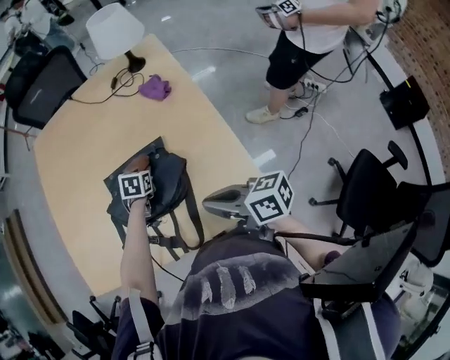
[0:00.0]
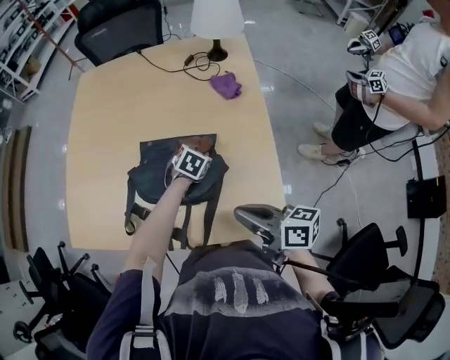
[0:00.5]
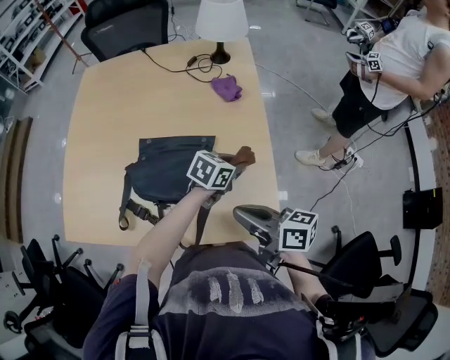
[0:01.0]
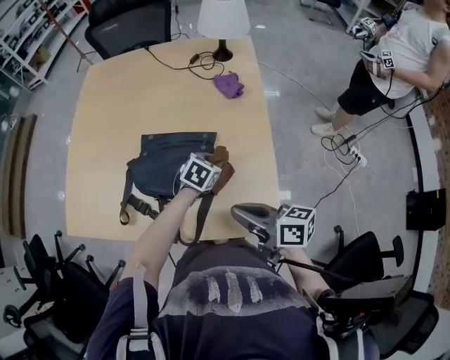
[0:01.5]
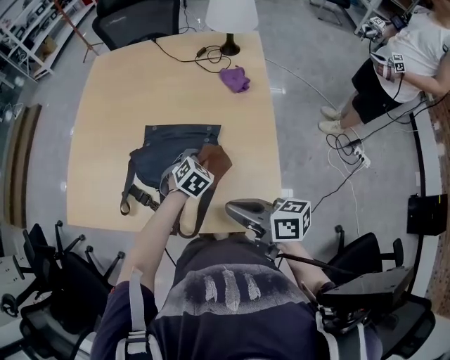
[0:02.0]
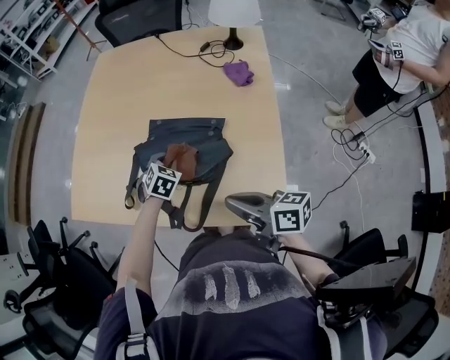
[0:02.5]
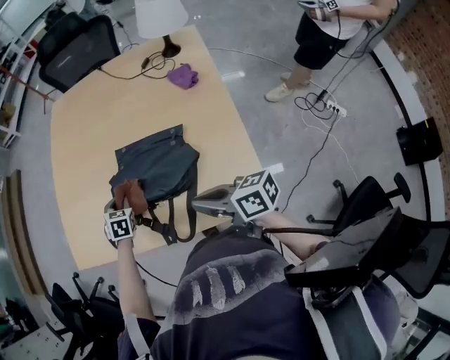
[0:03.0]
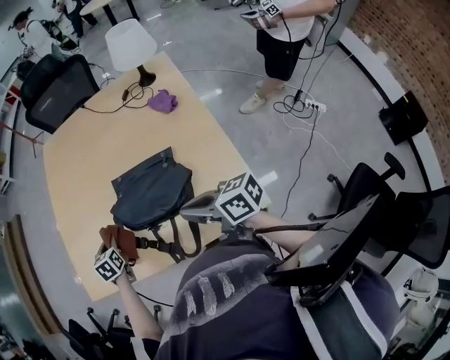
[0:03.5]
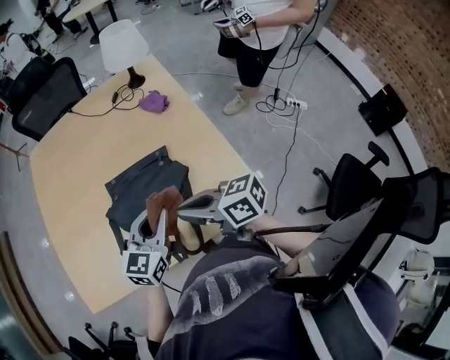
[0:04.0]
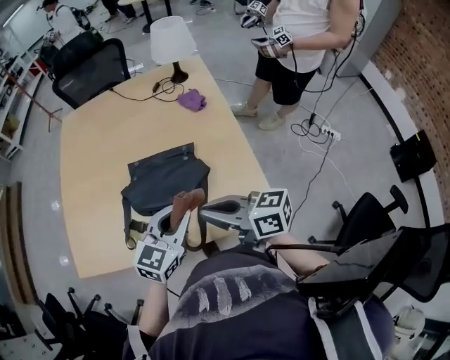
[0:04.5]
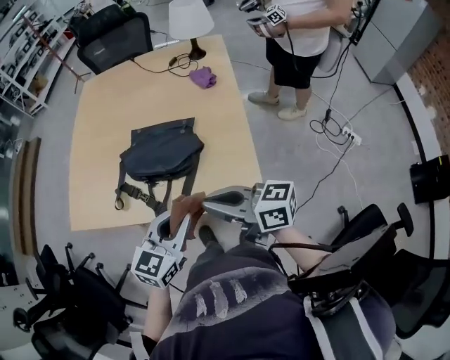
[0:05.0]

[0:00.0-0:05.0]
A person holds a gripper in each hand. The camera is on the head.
0:00.0 to 0:02.5: The left gripper reaches some 10 cm upward, then returns.
0:02.5 to 0:05.0: The right gripper moves some 10 cm. Meanwhile the left gripper shifts by some 35 cm, and tips its fingers upward by approximately 30 degrees.

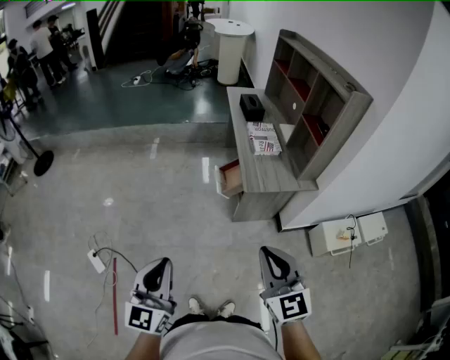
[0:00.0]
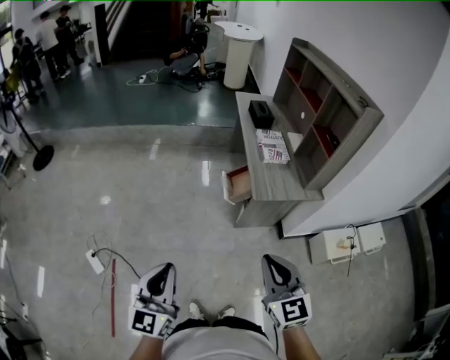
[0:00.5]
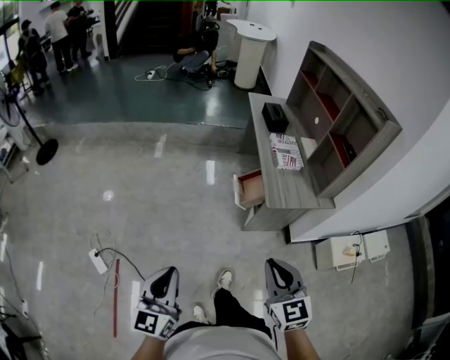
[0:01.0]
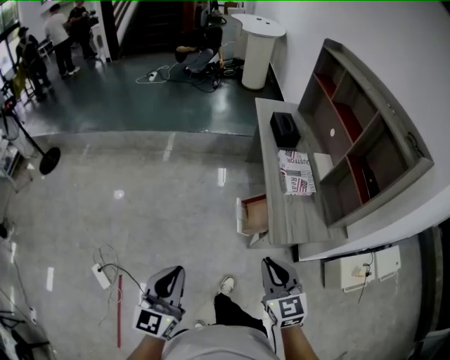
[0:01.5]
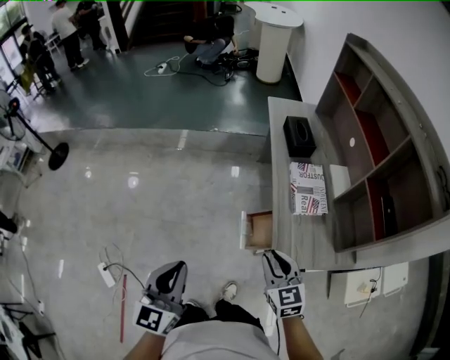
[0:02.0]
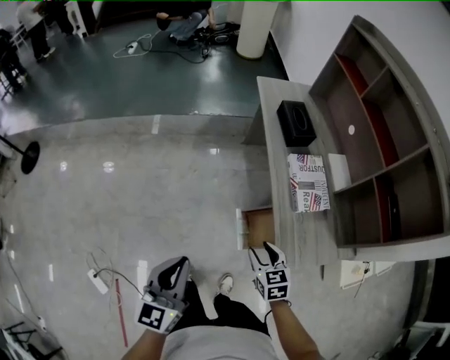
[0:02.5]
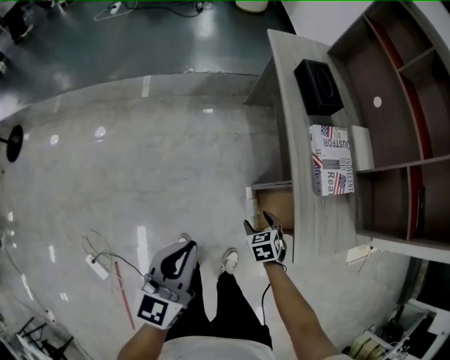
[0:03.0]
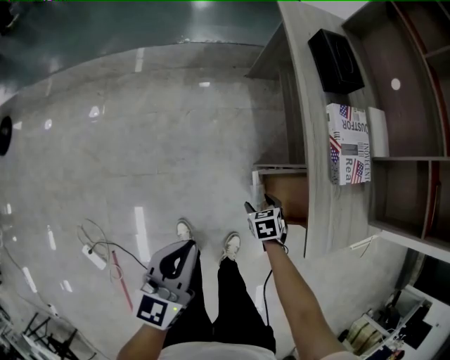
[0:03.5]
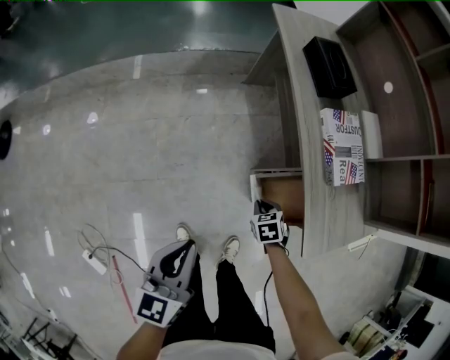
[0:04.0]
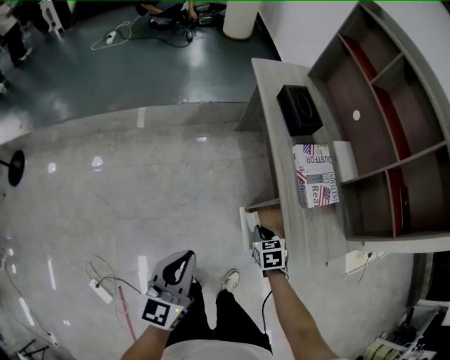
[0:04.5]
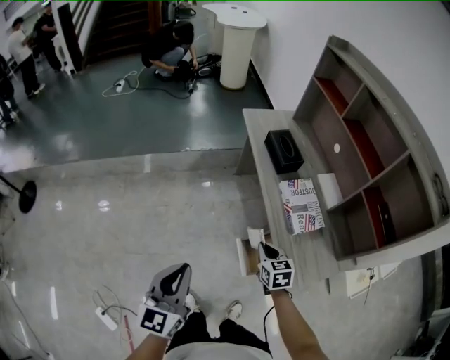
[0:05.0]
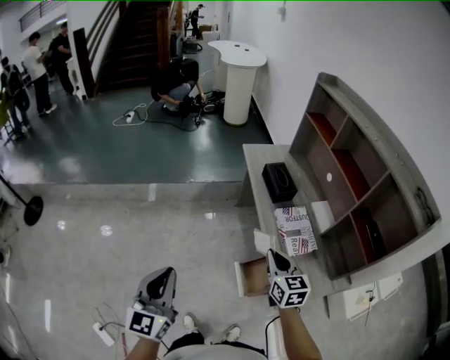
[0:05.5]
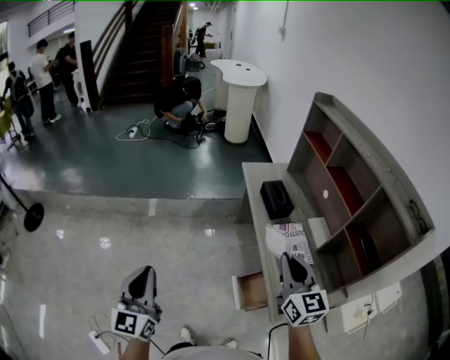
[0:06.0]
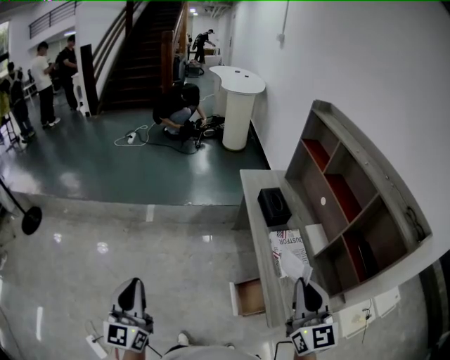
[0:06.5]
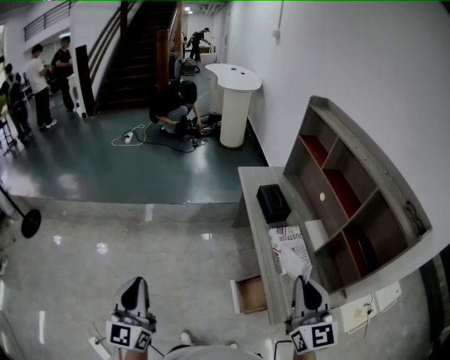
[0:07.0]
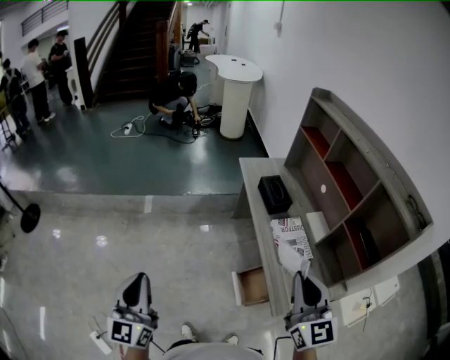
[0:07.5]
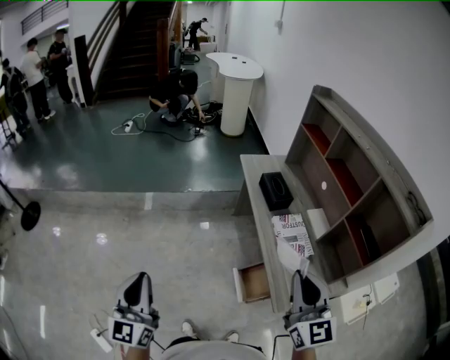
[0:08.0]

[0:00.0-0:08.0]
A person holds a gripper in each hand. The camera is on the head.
0:00.0 to 0:02.0: Both grippers travel together forward, some 40 cm.
0:02.0 to 0:04.0: The left gripper heads downward and forward, covering approximately 25 cm, and turns by roughly 20 degrees. The right gripper moves downward, about 40 cm, points its fingers some 40 degrees further downward, and opens and closes again.
0:04.0 to 0:06.0: The right gripper goes about 60 cm upward, and points its fingers about 70 degrees further upward. The left gripper goes some 30 cm upward, and changes its angle by approximately 30 degrees.
0:06.0 to 0:08.0: The right gripper goes about 10 cm backward.

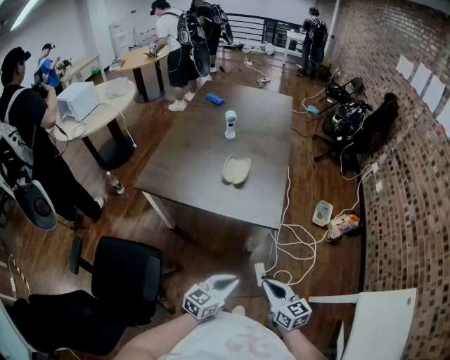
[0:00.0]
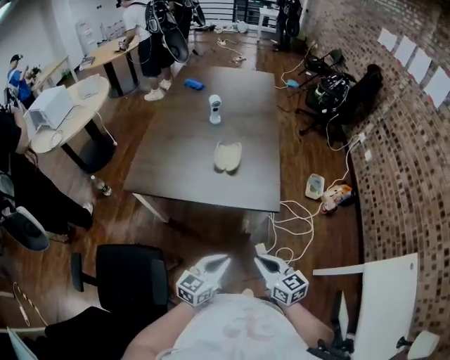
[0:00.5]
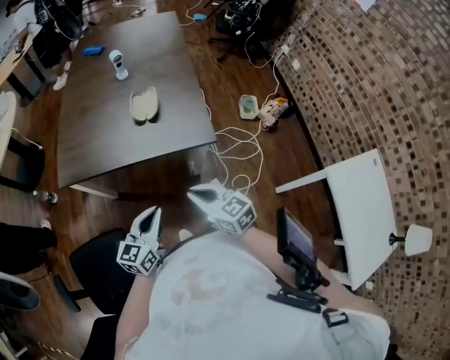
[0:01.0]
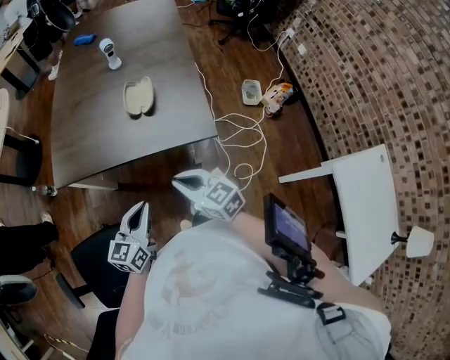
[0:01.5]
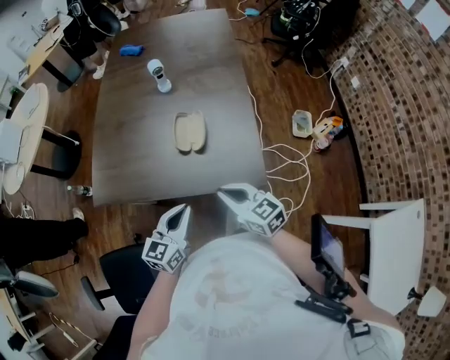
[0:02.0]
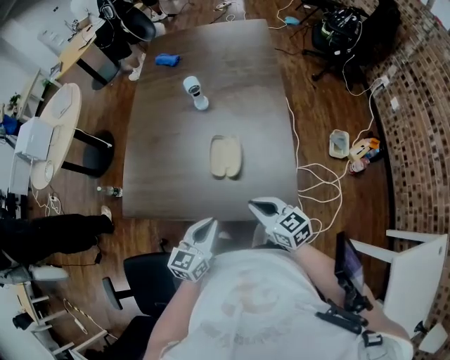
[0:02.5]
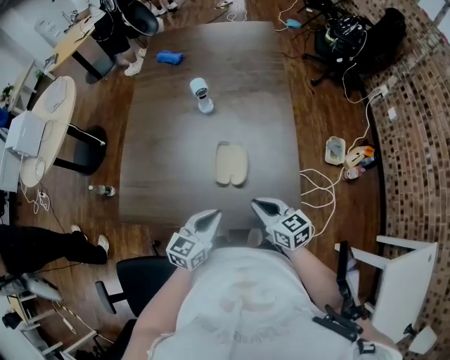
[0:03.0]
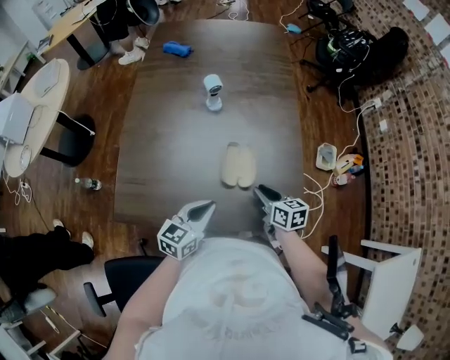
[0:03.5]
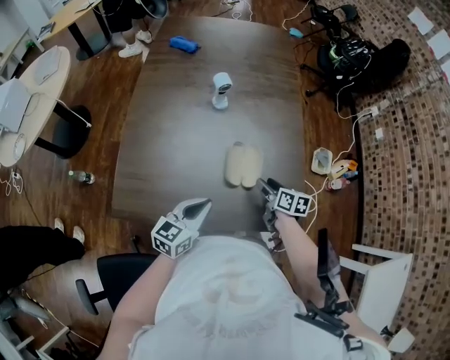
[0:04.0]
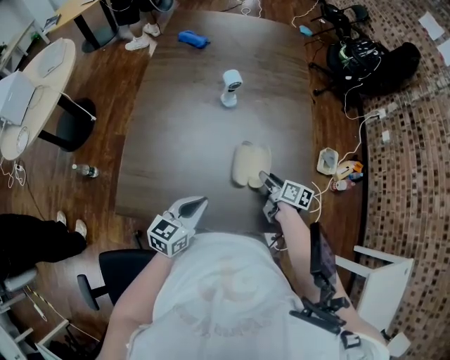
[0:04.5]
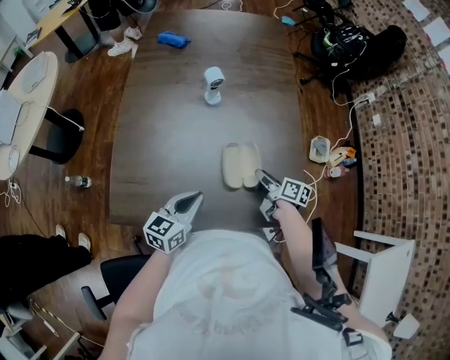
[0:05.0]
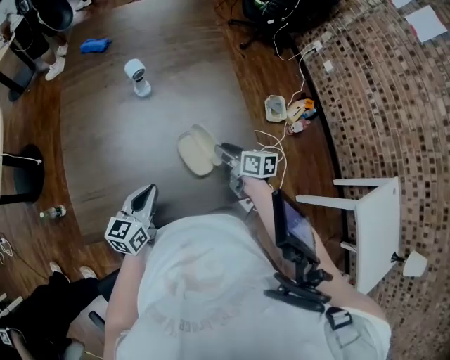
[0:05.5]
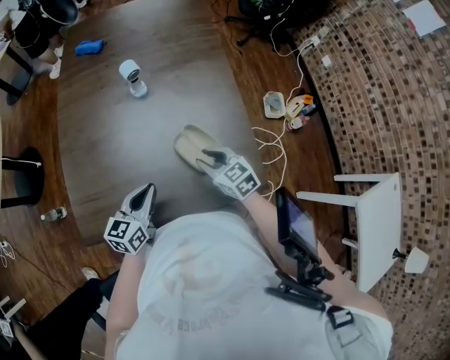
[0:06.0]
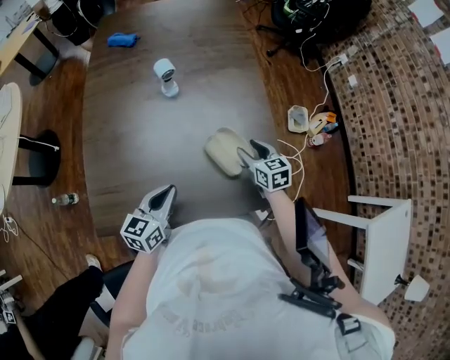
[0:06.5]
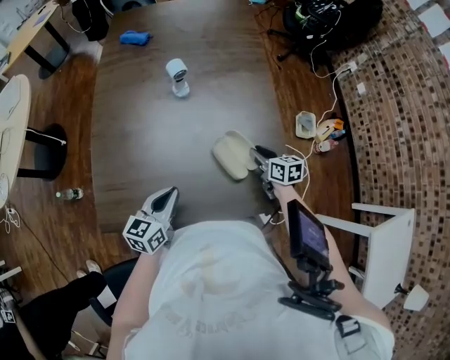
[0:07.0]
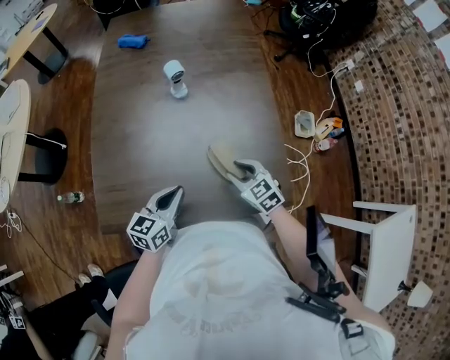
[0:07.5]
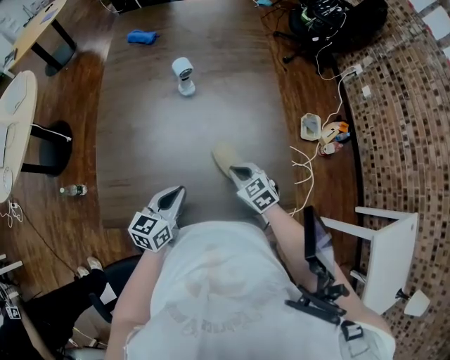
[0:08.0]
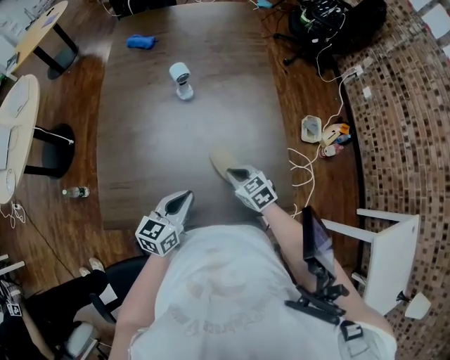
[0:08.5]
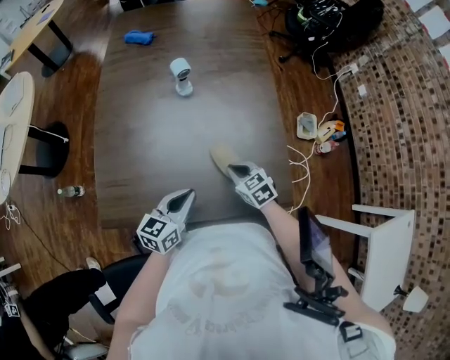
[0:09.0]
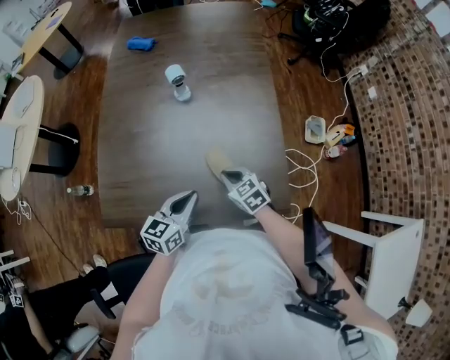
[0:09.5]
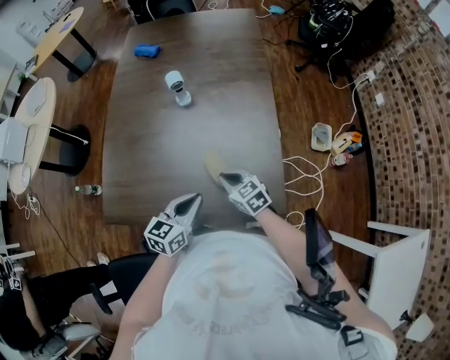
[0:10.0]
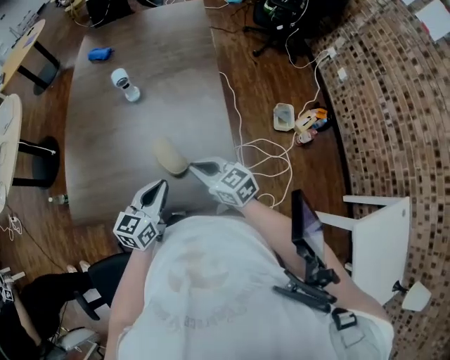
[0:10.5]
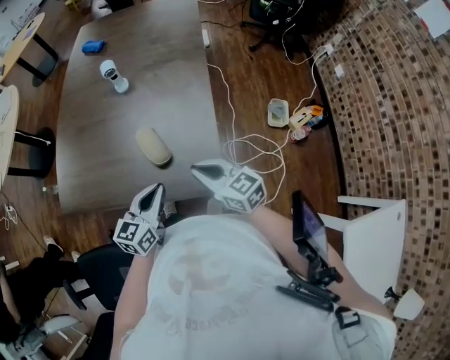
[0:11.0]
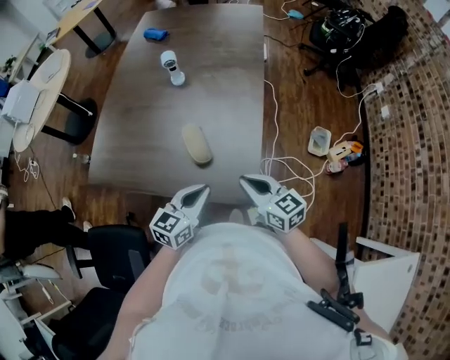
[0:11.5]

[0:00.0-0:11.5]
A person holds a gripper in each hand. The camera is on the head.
0:00.0 to 0:02.0: The right gripper shifts some 25 cm forward; the left gripper heads forward and to the left, covering approximately 25 cm.
0:02.0 to 0:04.0: The right gripper goes roughly 25 cm forward and downward, rotates roughly 40 degrees, and opens its fingers, while the left gripper goes approximately 20 cm forward and to the left.
0:04.0 to 0:06.0: The right gripper changes place by some 5 cm, turns by some 40 degrees, and closes up.
0:06.0 to 0:07.5: The right gripper reaches about 10 cm to the right, then returns.
0:07.5 to 0:09.5: The right gripper closes; the left gripper travels to the right by approximately 5 cm.
0:09.5 to 0:11.5: The right gripper travels to the right, backward and upward by some 25 cm, and swivels approximately 30 degrees. Meanwhile the left gripper goes about 20 cm to the right and backward.

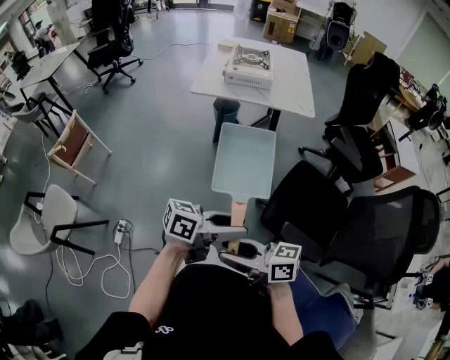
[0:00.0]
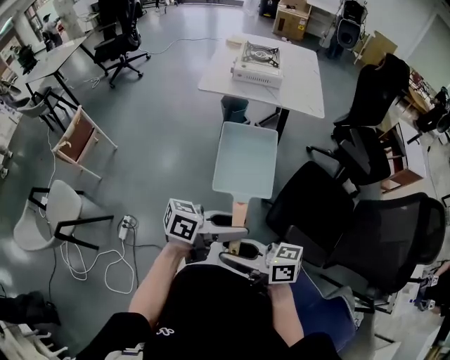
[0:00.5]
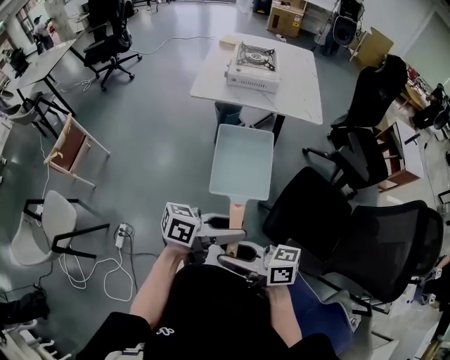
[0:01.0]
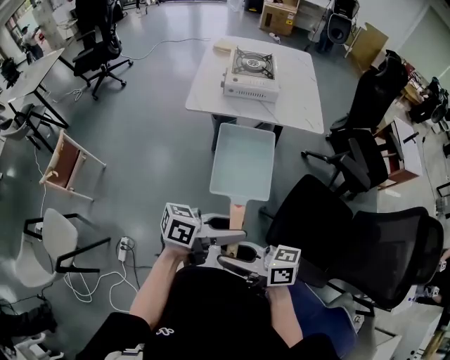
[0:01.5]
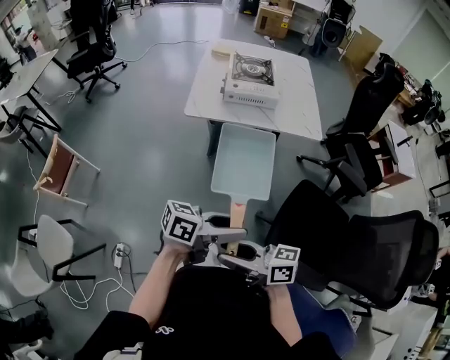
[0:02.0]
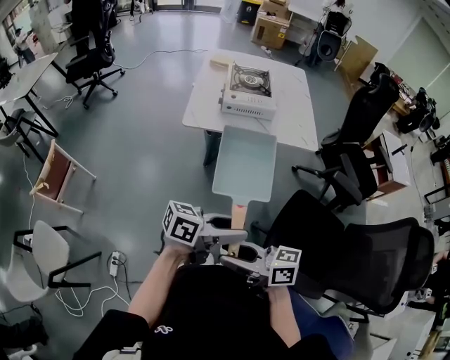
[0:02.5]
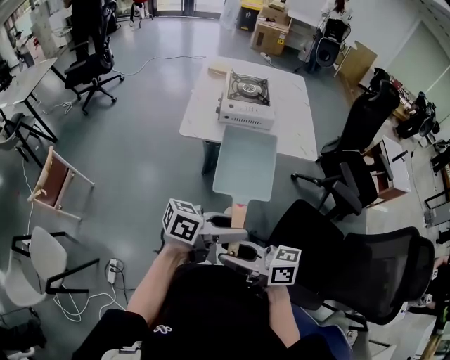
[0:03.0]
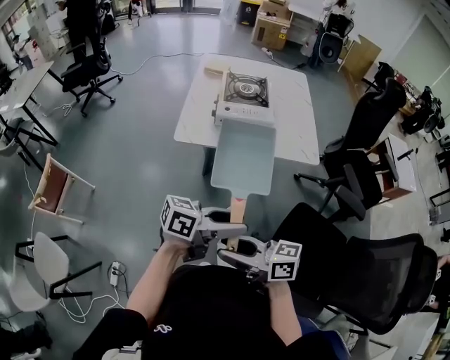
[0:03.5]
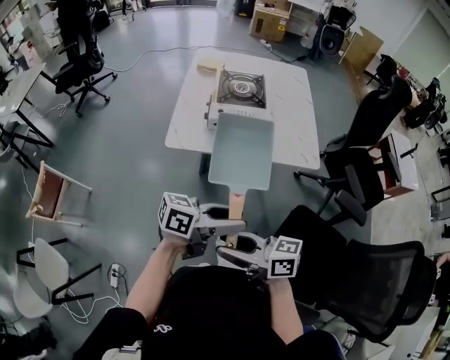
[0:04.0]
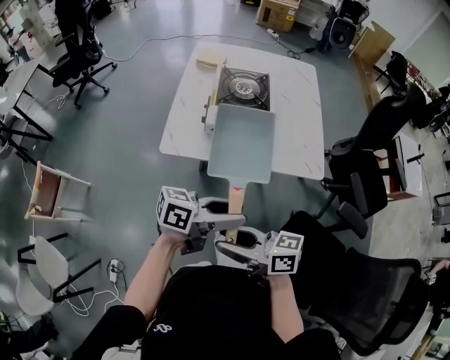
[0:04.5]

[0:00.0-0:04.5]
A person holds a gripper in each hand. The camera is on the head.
0:00.0 to 0:02.0: The right gripper moves roughly 20 cm; the left gripper moves approximately 20 cm.
0:02.0 to 0:04.5: The left gripper moves approximately 30 cm, while the right gripper shifts by about 30 cm.
